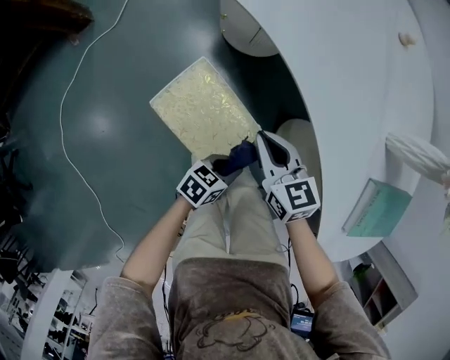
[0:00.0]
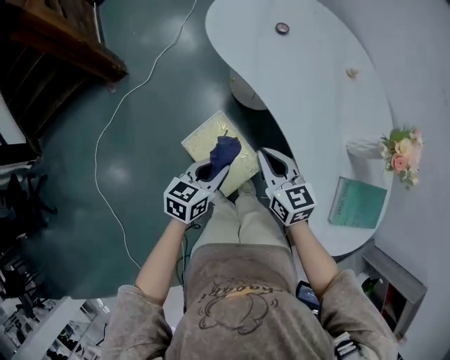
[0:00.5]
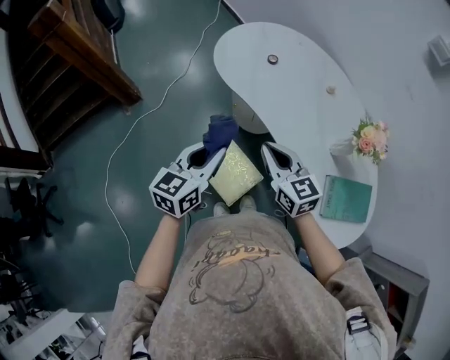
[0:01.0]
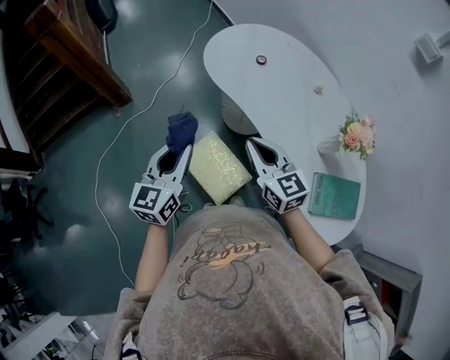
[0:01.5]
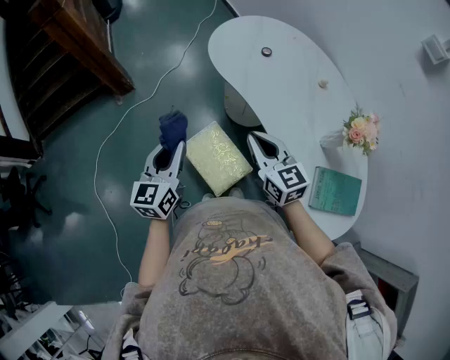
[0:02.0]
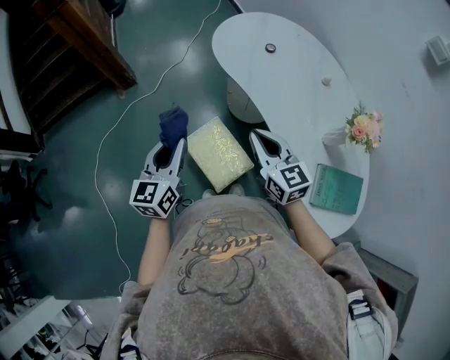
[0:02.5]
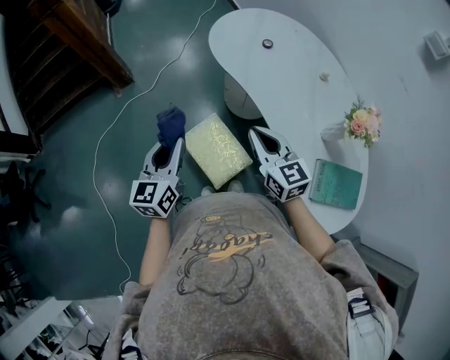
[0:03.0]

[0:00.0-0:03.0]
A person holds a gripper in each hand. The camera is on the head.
0:00.0 to 0:01.5: Both grippers move upward, roughly 40 cm. The right gripper turns by roughly 20 degrees. The left gripper rotates some 60 degrees.
0:01.5 to 0:03.0: The left gripper shifts by some 5 cm.

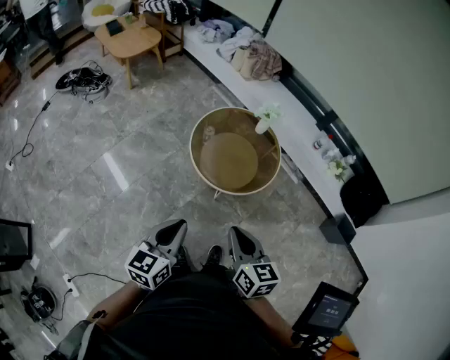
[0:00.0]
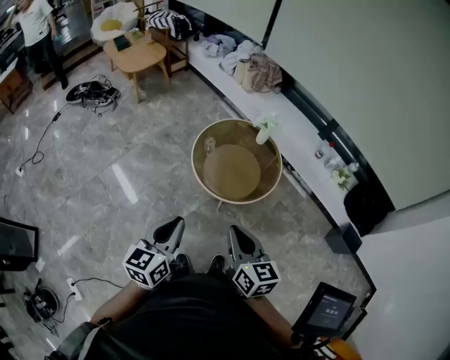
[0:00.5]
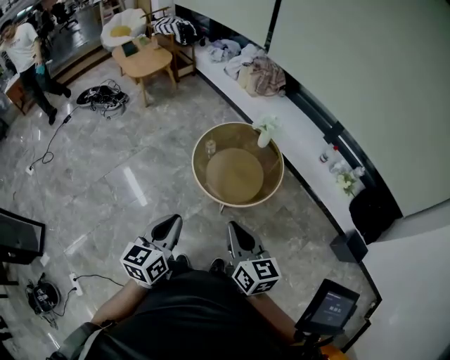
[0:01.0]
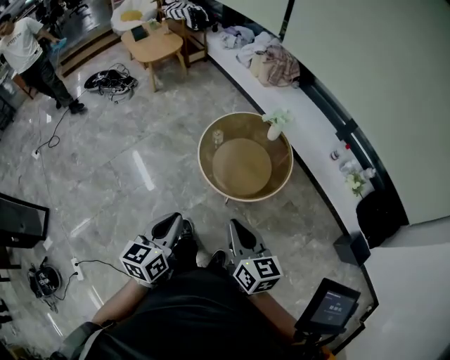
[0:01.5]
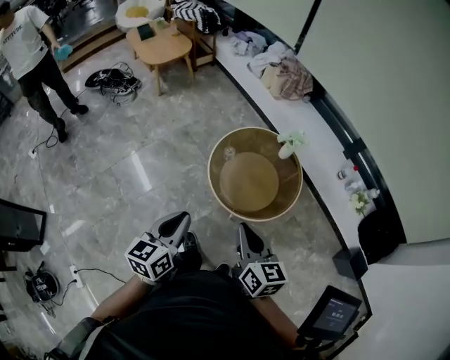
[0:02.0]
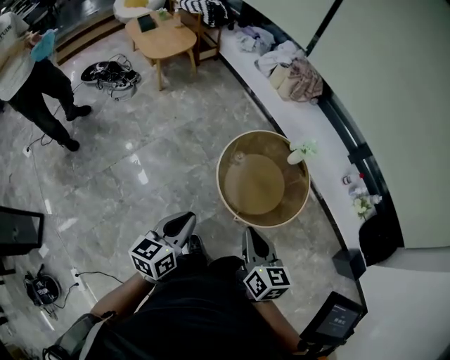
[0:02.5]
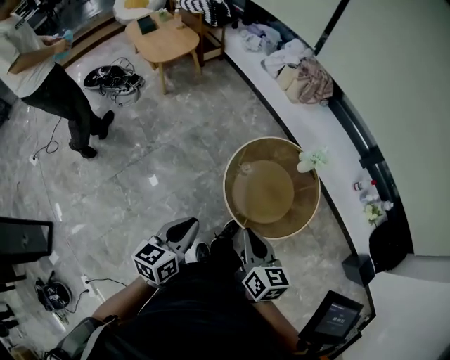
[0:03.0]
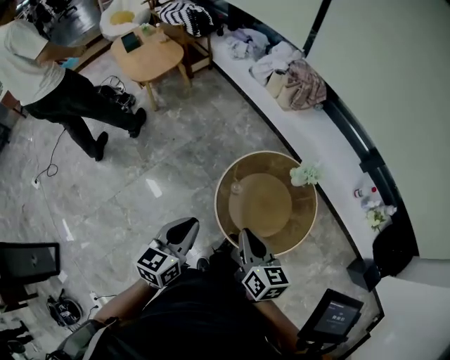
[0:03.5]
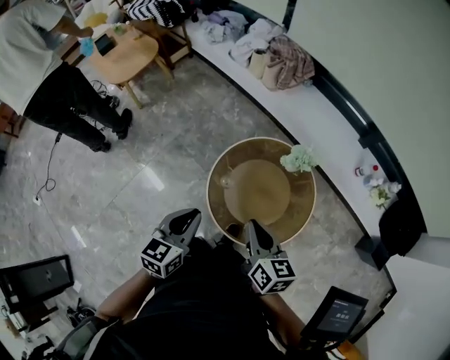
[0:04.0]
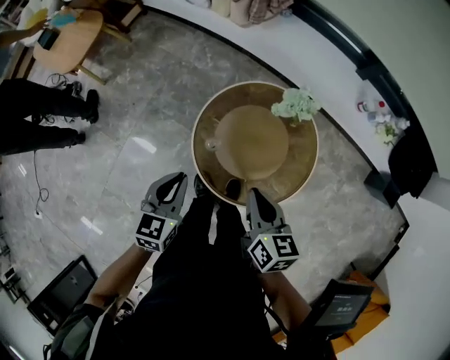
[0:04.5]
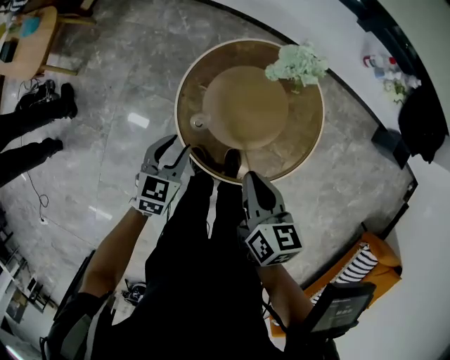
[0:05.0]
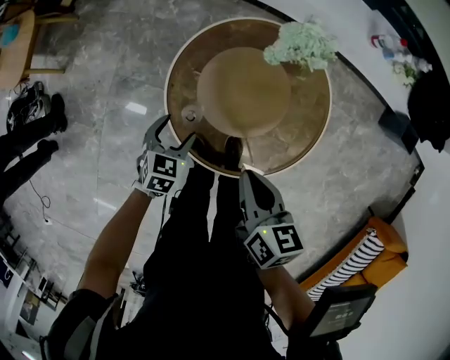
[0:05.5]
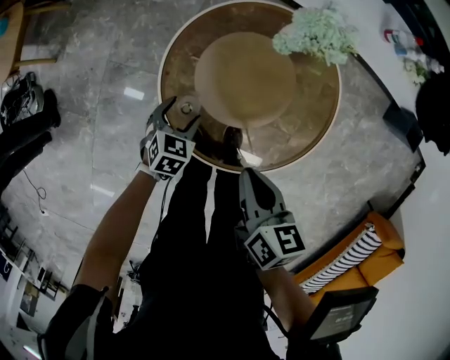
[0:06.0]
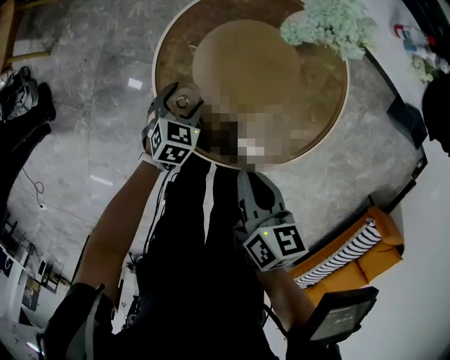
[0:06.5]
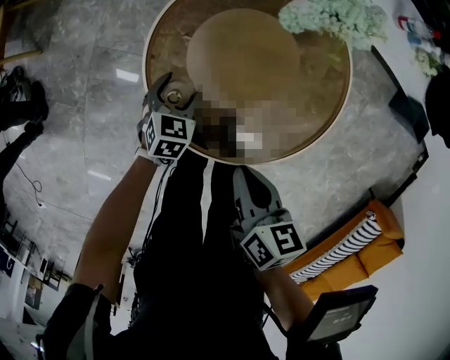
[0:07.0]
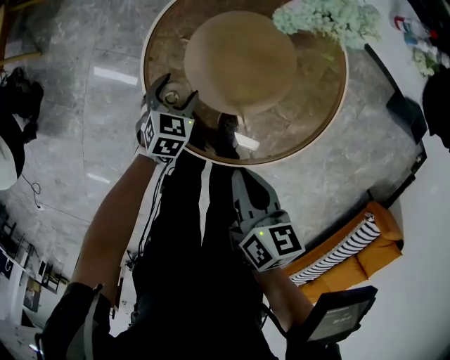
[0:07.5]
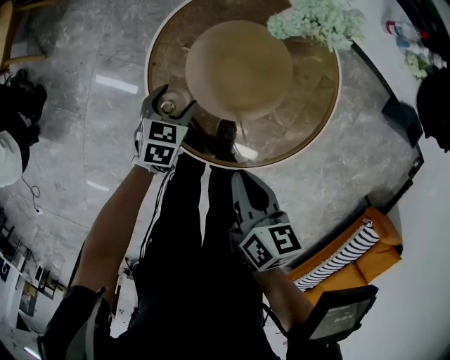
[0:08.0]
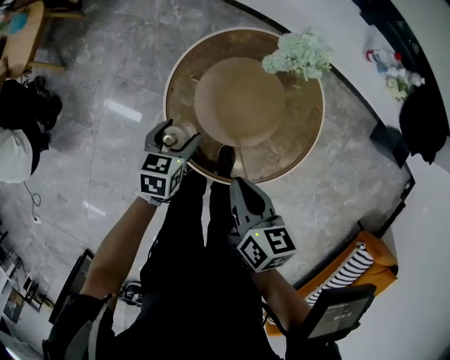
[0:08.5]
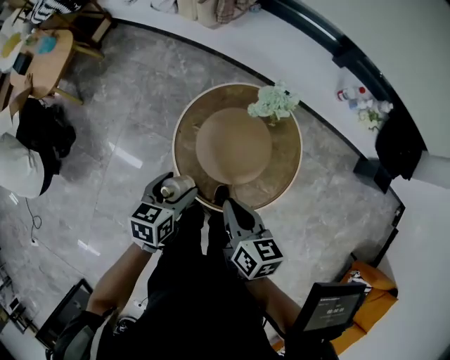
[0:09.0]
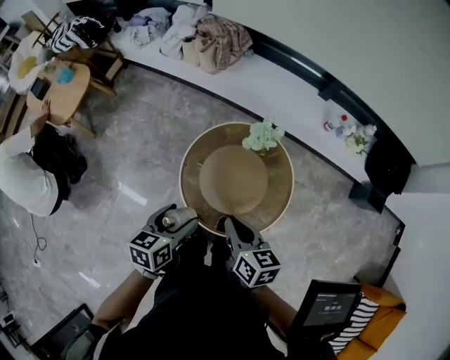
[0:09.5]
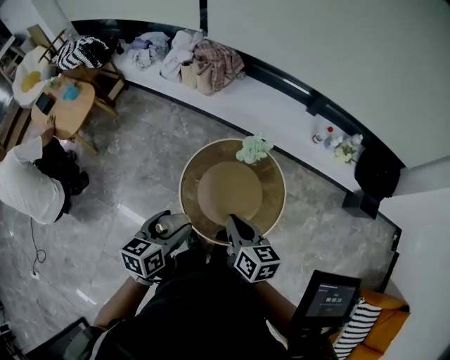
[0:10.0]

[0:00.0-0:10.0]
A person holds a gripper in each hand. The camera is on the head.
0:00.0 to 0:02.0: Both grippers move forward, about 10 cm.
0:02.0 to 0:04.0: The two grippers go about 30 cm forward. The left gripper turns by about 20 degrees.
0:04.0 to 0:06.0: The right gripper heads downward, covering some 25 cm, and rotates some 30 degrees. The left gripper is displaced downward by roughly 40 cm, tilts its fingers about 30 degrees downward, and opens its fingers.
0:06.0 to 0:08.0: The grippers make only small movements.
0:08.0 to 0:10.0: The left gripper travels upward by roughly 50 cm, and turns by some 30 degrees. The right gripper heads upward, covering some 30 cm, and rotates approximately 20 degrees.

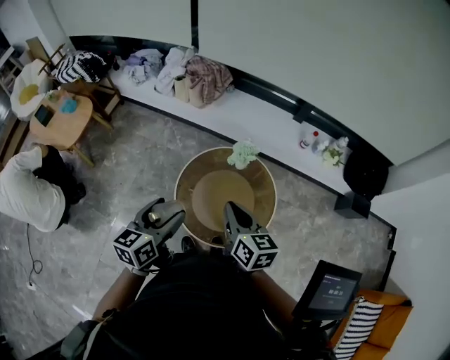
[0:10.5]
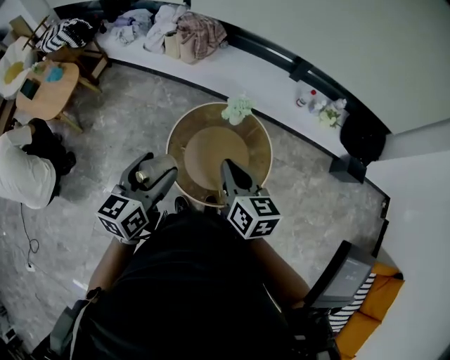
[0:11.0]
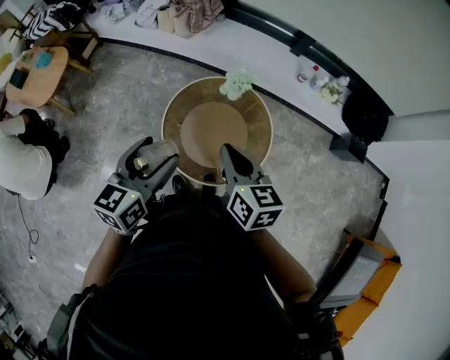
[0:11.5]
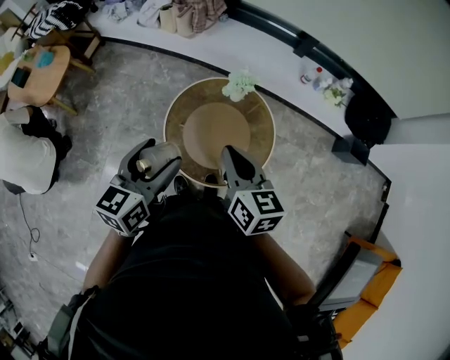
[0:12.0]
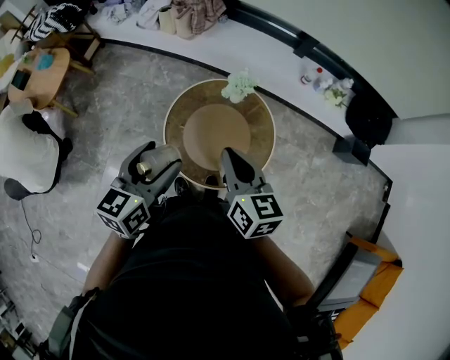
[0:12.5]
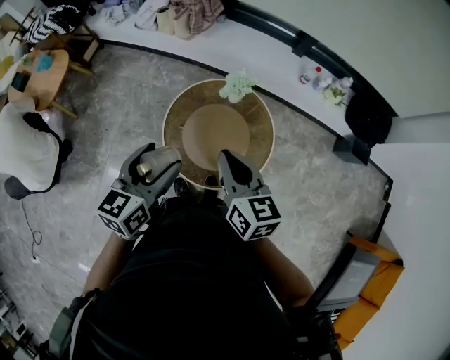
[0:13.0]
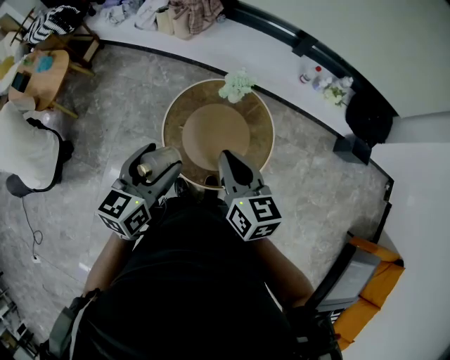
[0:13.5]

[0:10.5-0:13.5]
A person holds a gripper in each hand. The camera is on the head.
0:10.5 to 0:13.5: The grippers make only small movements.

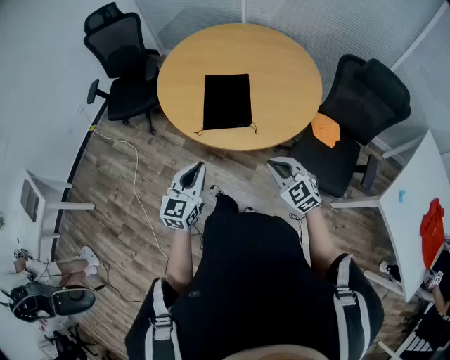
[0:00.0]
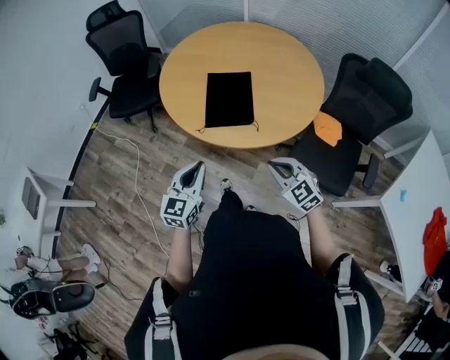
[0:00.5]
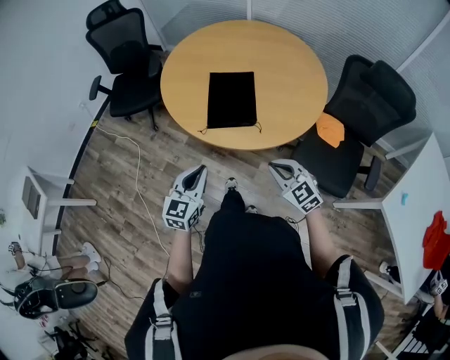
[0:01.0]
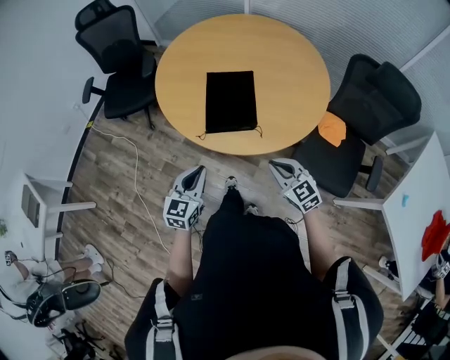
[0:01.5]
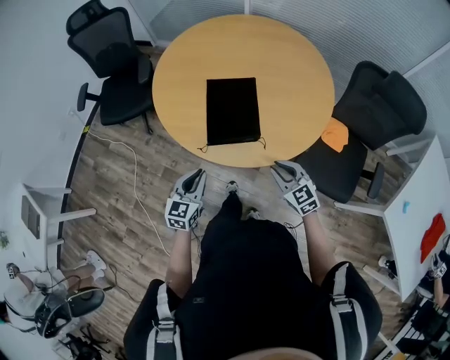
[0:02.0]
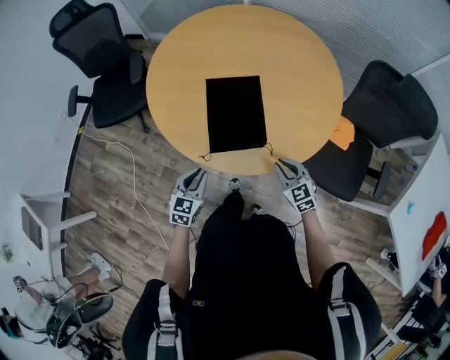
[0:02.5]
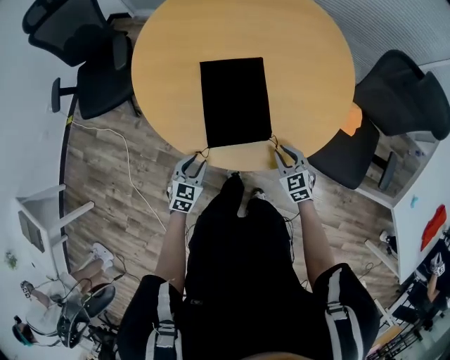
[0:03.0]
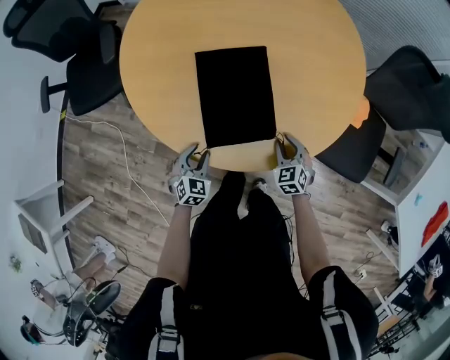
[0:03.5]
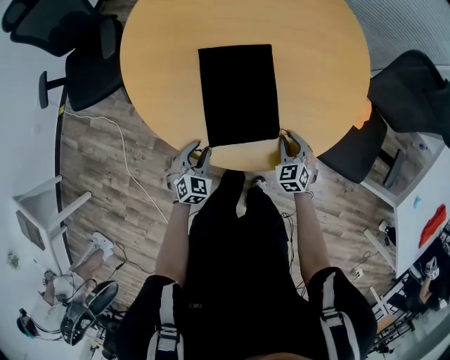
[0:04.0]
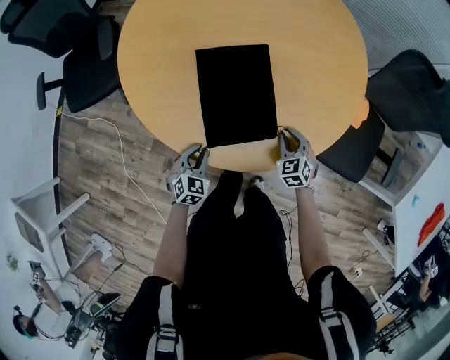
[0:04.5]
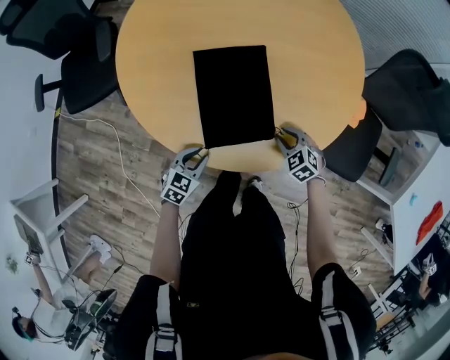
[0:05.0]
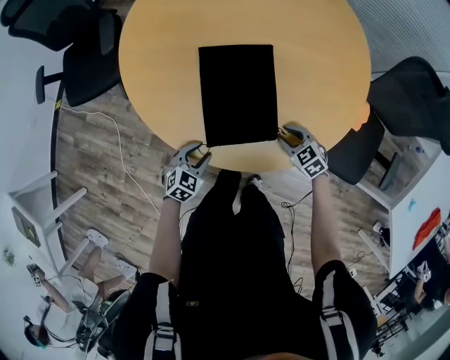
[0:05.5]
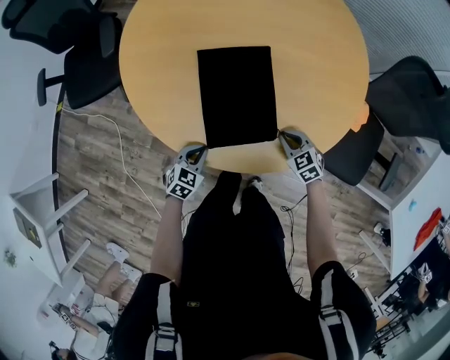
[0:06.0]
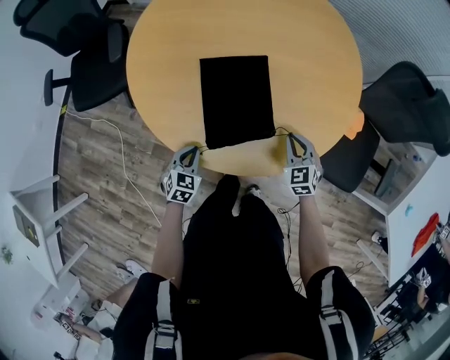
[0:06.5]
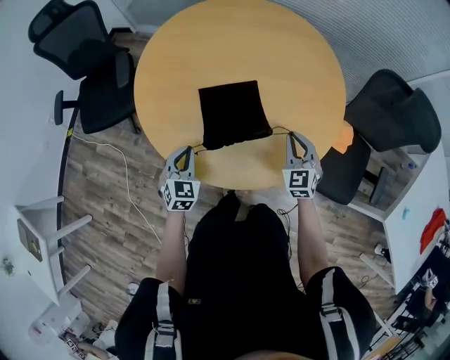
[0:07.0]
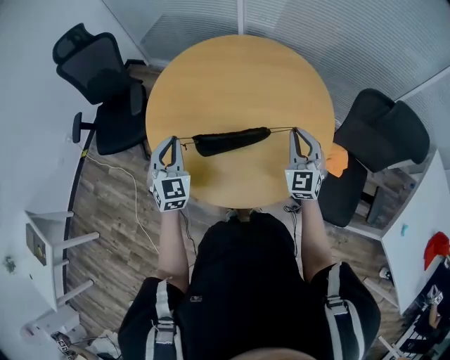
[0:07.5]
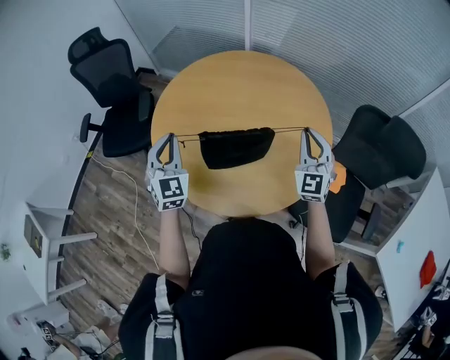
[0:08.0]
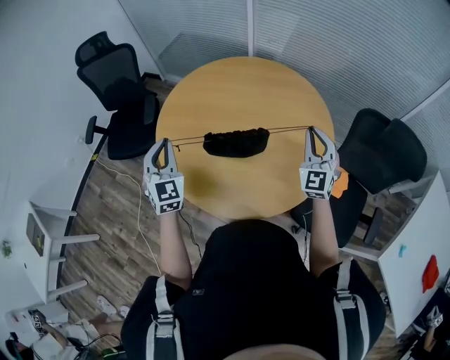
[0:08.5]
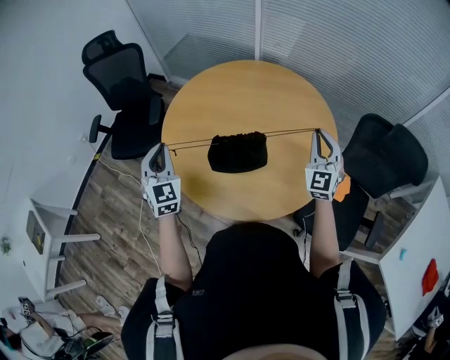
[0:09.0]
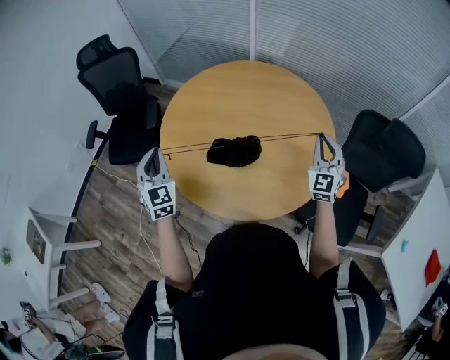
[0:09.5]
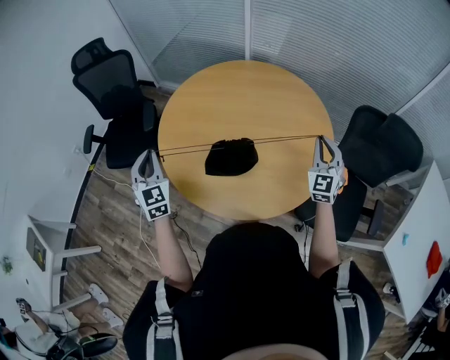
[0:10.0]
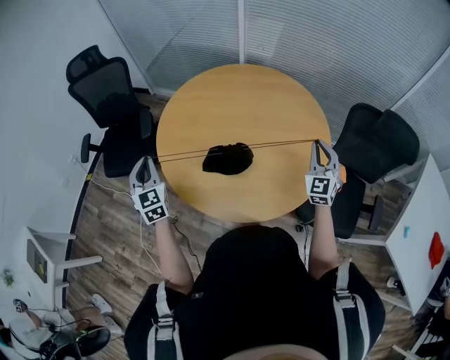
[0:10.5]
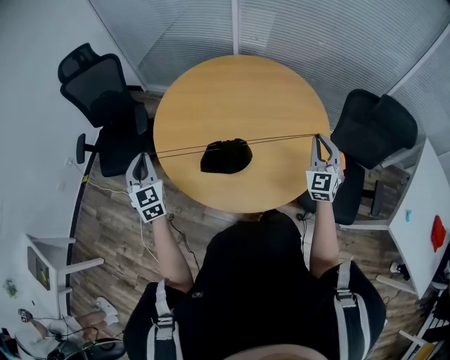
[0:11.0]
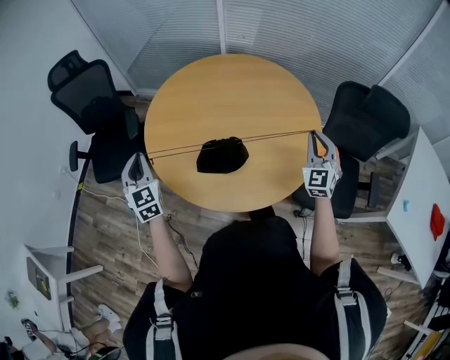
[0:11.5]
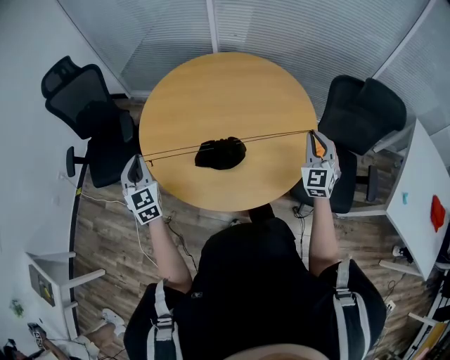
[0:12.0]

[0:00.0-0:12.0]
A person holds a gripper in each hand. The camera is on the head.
0:00.0 to 0:02.0: Both grippers move forward and downward, approximately 15 cm.
0:02.0 to 0:04.0: The two grippers go some 25 cm downward and forward. The right gripper changes its angle by some 30 degrees; the left gripper swivels roughly 40 degrees, and opens.
0:04.0 to 0:06.0: The left gripper closes. The right gripper changes its angle by about 20 degrees.
0:06.0 to 0:08.0: The grippers both shift upward by some 40 cm. The right gripper tips its fingers upward by some 50 degrees; the left gripper tilts its fingers about 40 degrees upward.
0:08.0 to 0:10.0: The left gripper shifts about 15 cm to the left.
0:10.0 to 0:12.0: The right gripper travels backward by approximately 5 cm.
